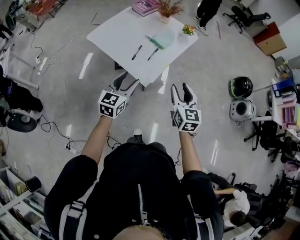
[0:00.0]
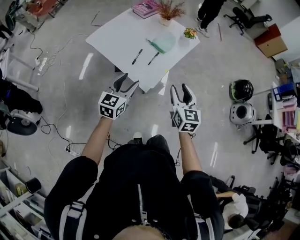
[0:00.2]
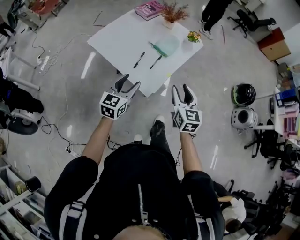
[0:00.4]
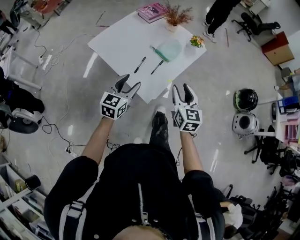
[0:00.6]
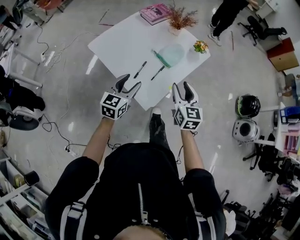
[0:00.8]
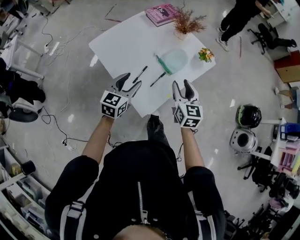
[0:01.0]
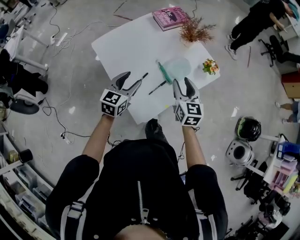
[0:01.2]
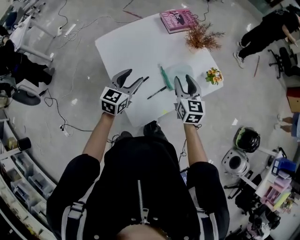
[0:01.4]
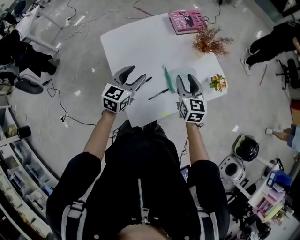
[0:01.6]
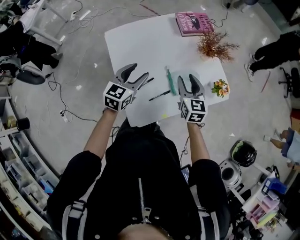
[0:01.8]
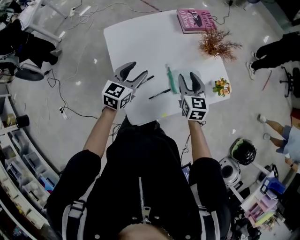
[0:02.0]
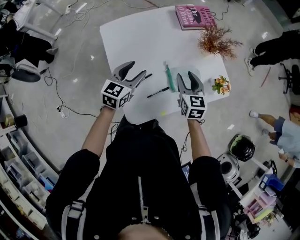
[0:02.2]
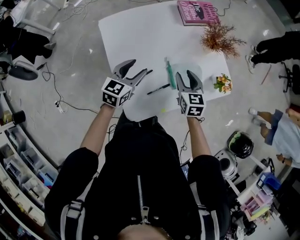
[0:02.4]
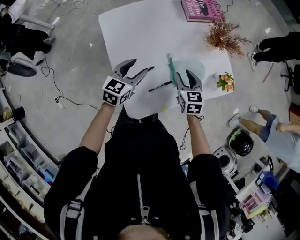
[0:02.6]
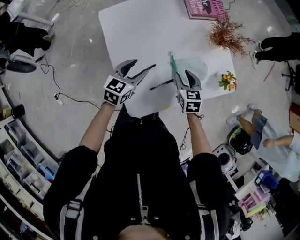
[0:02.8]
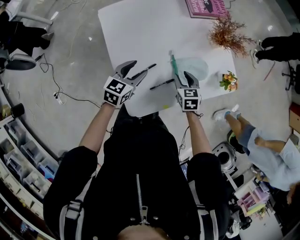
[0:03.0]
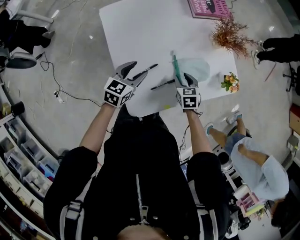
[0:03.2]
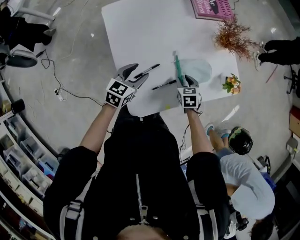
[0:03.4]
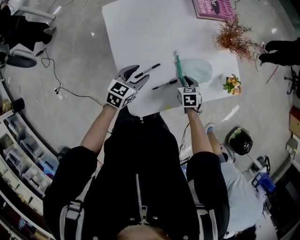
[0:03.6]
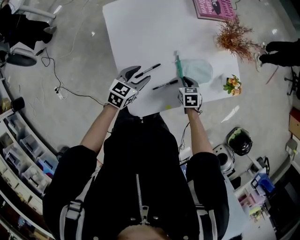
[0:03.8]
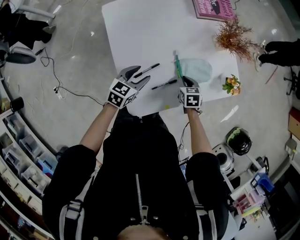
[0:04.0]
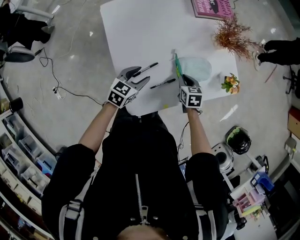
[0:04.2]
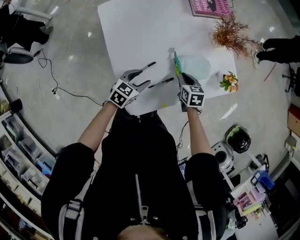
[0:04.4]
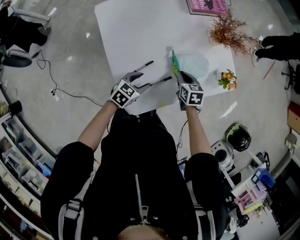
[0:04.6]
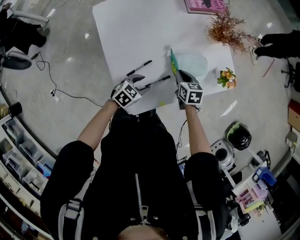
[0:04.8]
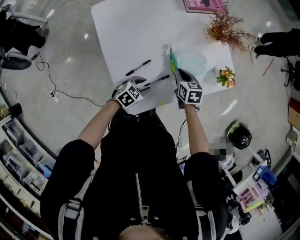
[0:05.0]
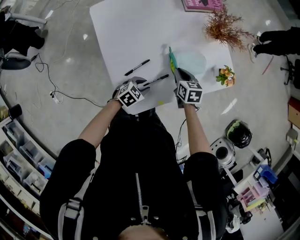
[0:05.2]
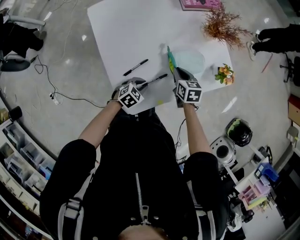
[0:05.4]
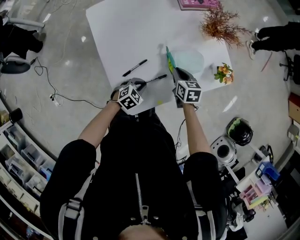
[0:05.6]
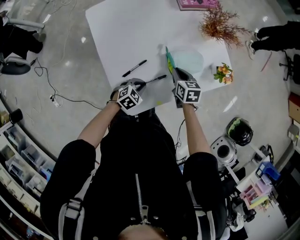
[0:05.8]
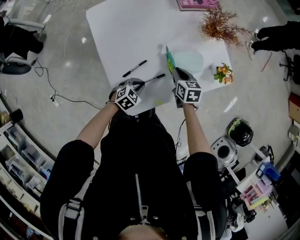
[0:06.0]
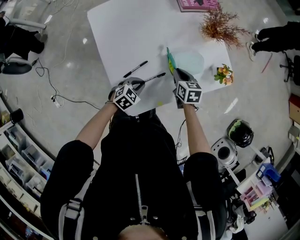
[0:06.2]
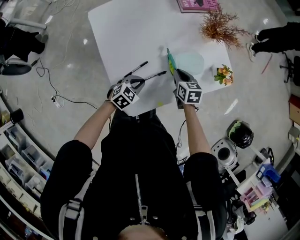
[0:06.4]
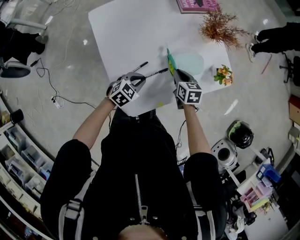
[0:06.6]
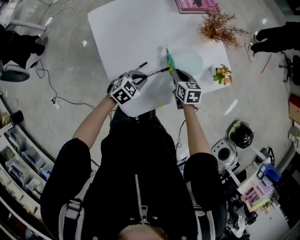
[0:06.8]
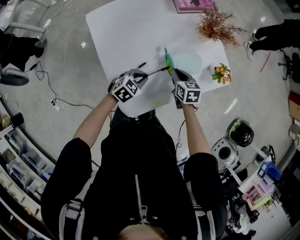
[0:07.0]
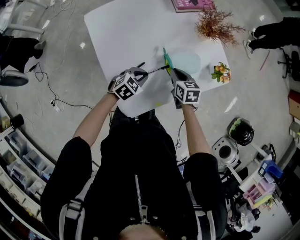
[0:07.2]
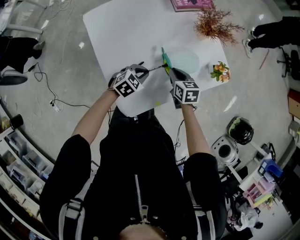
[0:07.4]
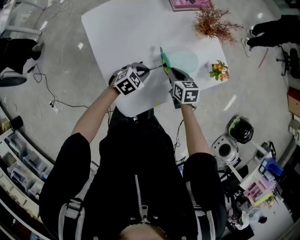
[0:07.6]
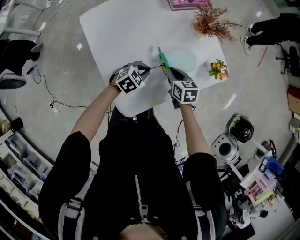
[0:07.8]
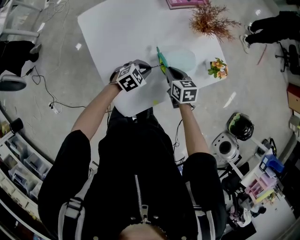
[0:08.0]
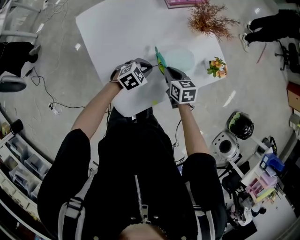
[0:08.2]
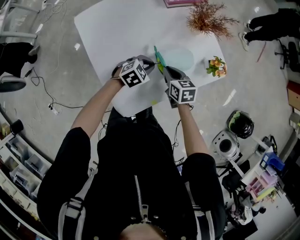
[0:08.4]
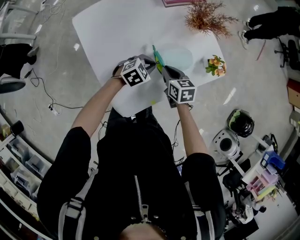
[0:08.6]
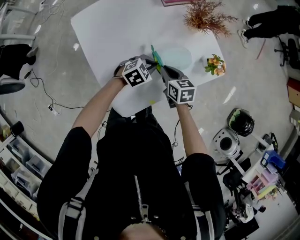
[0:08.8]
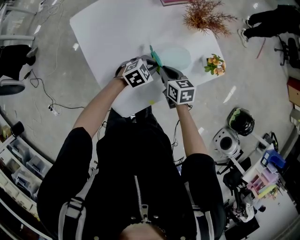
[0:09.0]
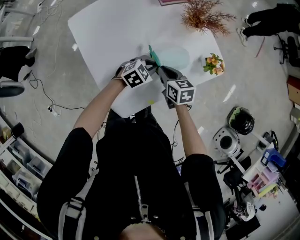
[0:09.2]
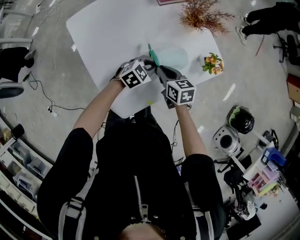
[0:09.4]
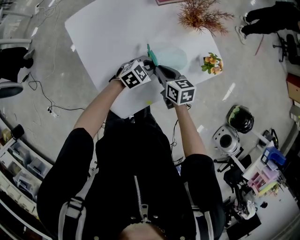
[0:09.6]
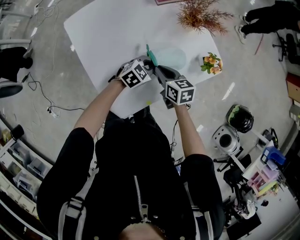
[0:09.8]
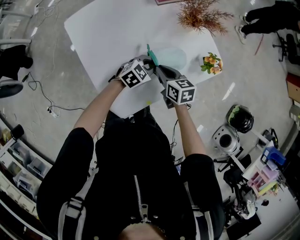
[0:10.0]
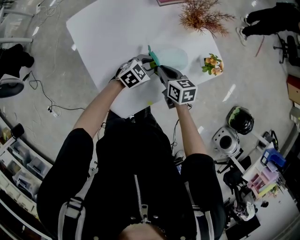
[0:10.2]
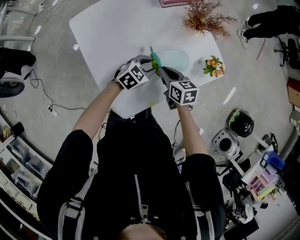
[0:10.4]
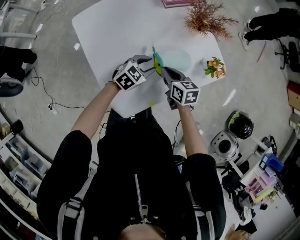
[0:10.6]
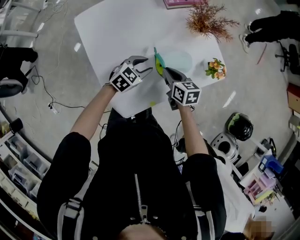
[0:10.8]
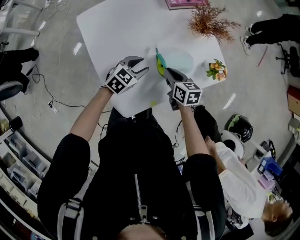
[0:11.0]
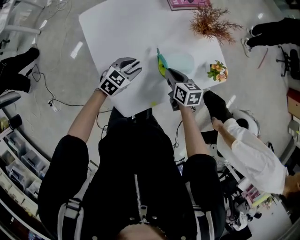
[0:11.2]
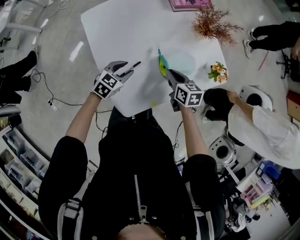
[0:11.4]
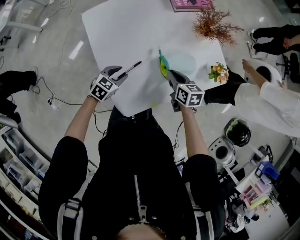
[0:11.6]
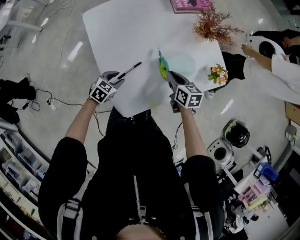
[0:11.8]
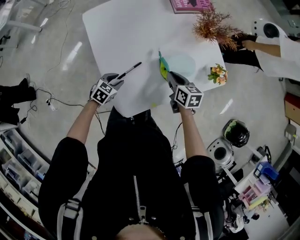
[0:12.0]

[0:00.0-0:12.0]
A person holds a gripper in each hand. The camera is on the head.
0:00.0 to 0:01.6: The left gripper moves approximately 30 cm, and changes its angle by about 20 degrees, while the right gripper ends up some 40 cm from where it was, and changes its angle by roughly 30 degrees.
0:01.6 to 0:03.0: The right gripper moves downward, roughly 15 cm, and changes its angle by approximately 30 degrees; the left gripper heads downward, covering roughly 10 cm.
0:03.0 to 0:04.4: The left gripper goes about 5 cm downward; the right gripper closes up.
0:04.4 to 0:06.0: The left gripper moves downward, roughly 5 cm, changes its angle by approximately 20 degrees, and closes.
0:06.0 to 0:07.6: The left gripper shifts some 10 cm forward and upward.
0:07.6 to 0:09.0: The left gripper heads to the right, covering about 5 cm.
0:09.0 to 0:10.4: The left gripper opens up.
0:10.4 to 0:12.0: The left gripper goes roughly 20 cm to the left and backward, and swivels some 20 degrees.

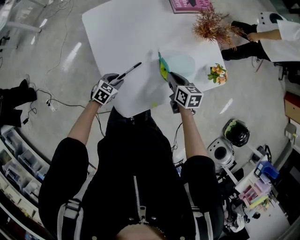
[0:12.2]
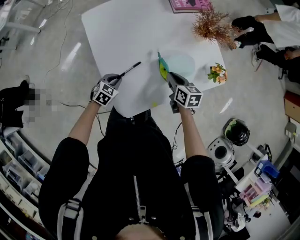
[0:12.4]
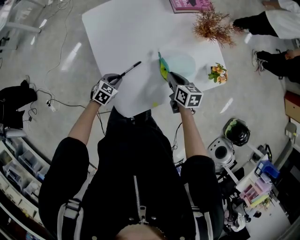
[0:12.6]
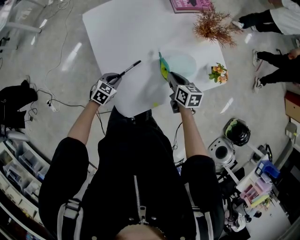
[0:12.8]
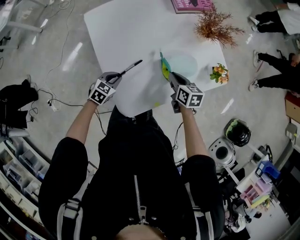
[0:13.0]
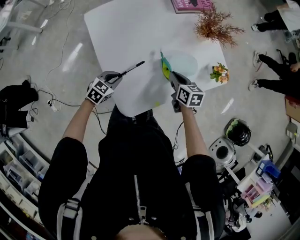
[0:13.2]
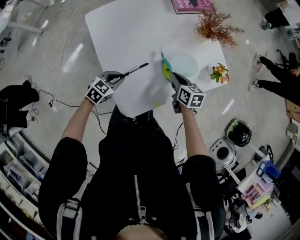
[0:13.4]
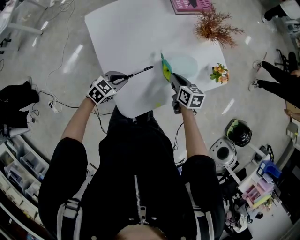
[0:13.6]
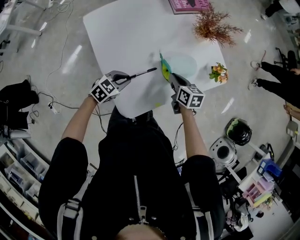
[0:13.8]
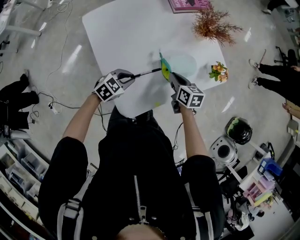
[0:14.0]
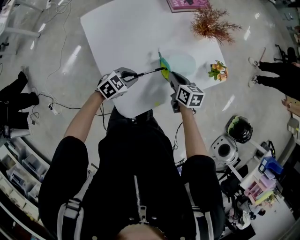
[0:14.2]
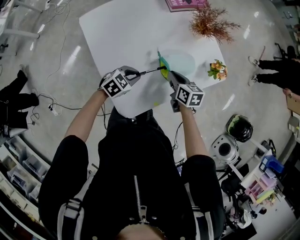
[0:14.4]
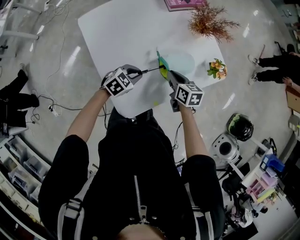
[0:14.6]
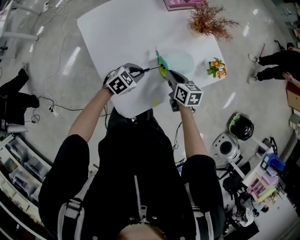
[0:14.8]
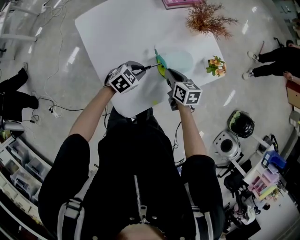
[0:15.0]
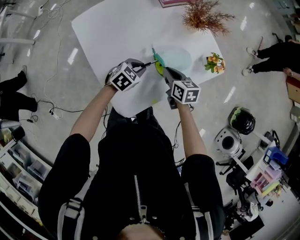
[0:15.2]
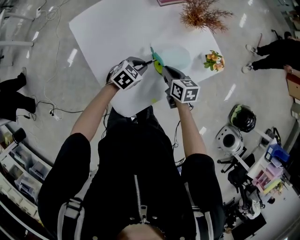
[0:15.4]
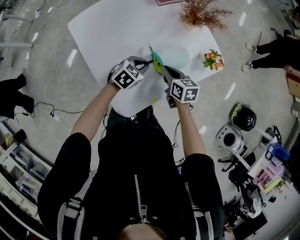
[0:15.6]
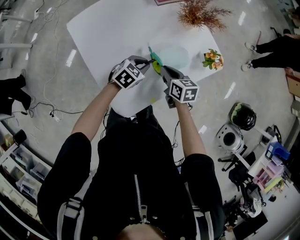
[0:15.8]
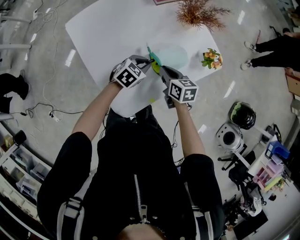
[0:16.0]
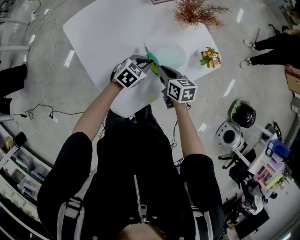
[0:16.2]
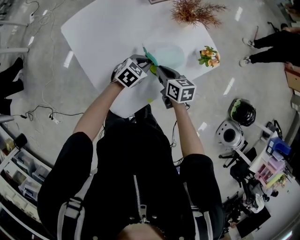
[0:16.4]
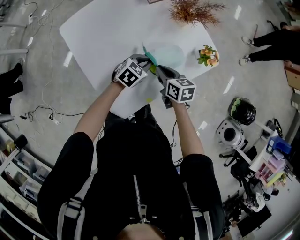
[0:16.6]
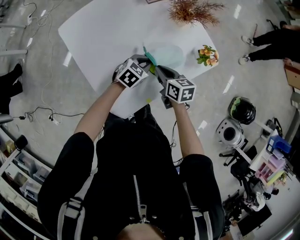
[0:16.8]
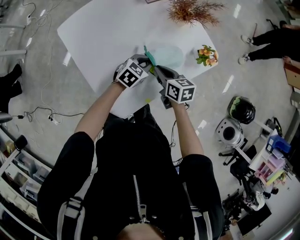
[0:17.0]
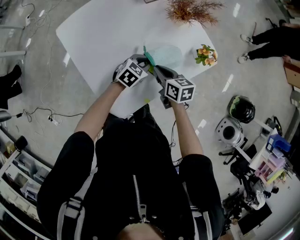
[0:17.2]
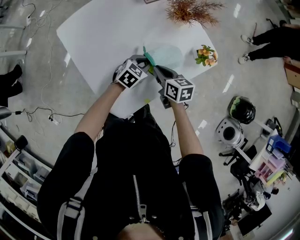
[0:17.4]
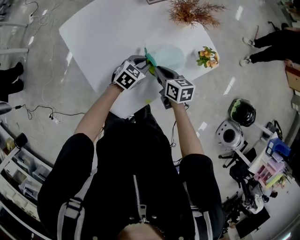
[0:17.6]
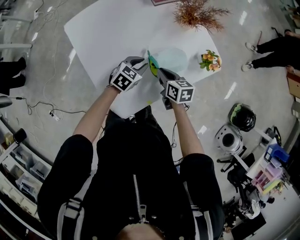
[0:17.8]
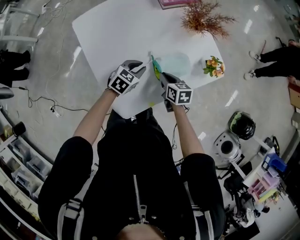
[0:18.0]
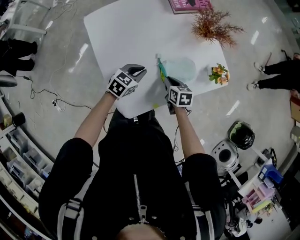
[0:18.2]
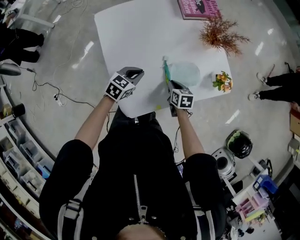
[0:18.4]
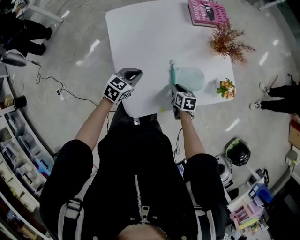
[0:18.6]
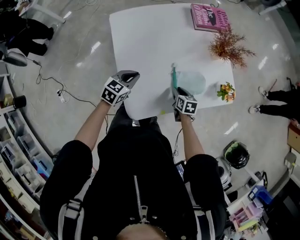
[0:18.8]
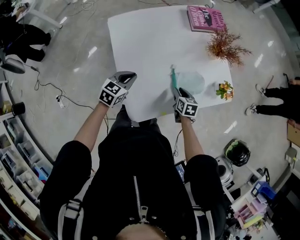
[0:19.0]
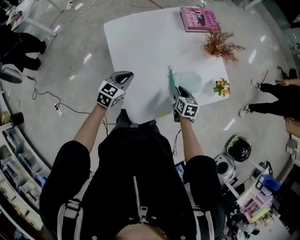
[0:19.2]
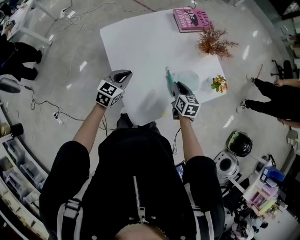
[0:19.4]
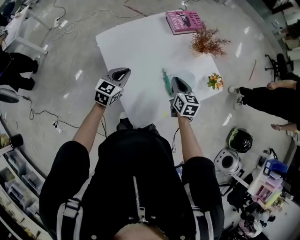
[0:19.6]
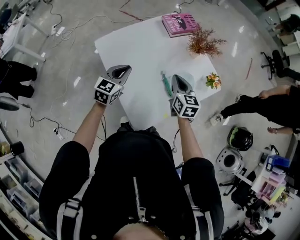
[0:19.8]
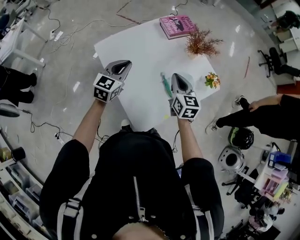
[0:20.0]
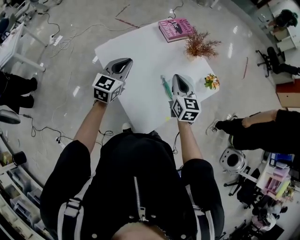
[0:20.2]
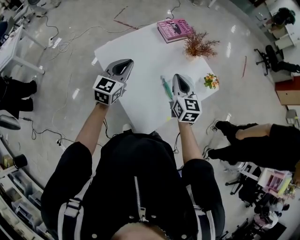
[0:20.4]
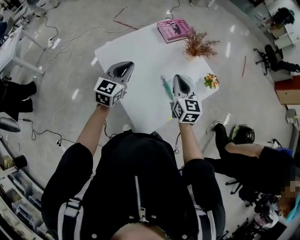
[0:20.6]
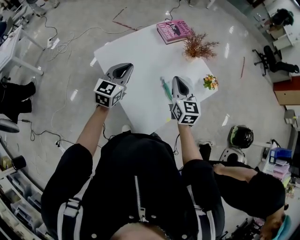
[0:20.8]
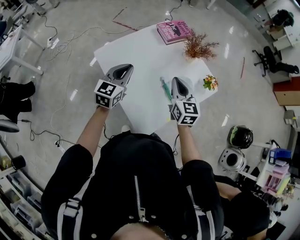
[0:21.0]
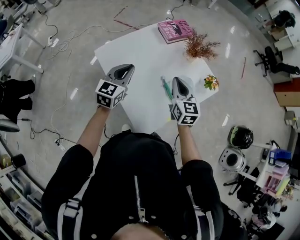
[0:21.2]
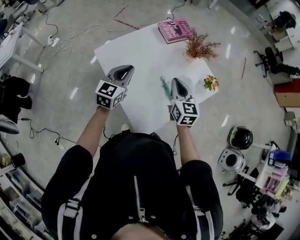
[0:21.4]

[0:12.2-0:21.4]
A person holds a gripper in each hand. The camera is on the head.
0:12.2 to 0:13.8: The left gripper travels upward by about 10 cm.
0:13.8 to 0:15.2: The left gripper goes roughly 10 cm to the right and forward.
0:15.2 to 0:16.8: The left gripper shifts approximately 5 cm to the right.
0:16.8 to 0:18.4: The left gripper shifts approximately 15 cm to the left, and swivels approximately 20 degrees, while the right gripper travels downward by roughly 10 cm.
0:18.4 to 0:19.8: The left gripper travels upward and to the left by some 20 cm, and rotates approximately 20 degrees, while the right gripper heads upward, covering roughly 20 cm, and swivels some 40 degrees.
0:19.8 to 0:21.4: The left gripper goes approximately 5 cm upward; the right gripper changes place by roughly 5 cm.

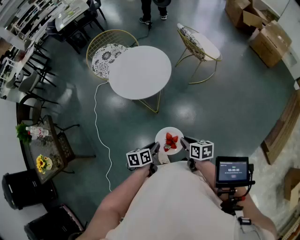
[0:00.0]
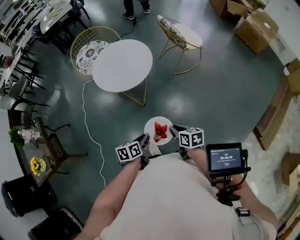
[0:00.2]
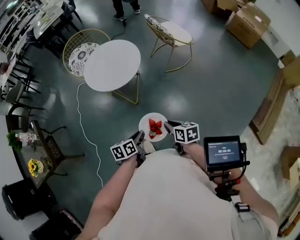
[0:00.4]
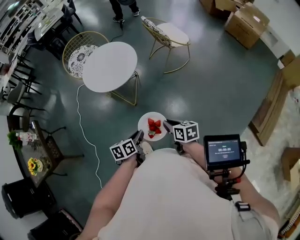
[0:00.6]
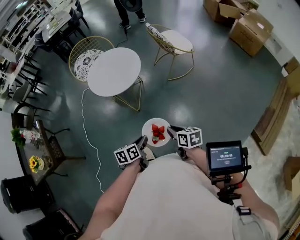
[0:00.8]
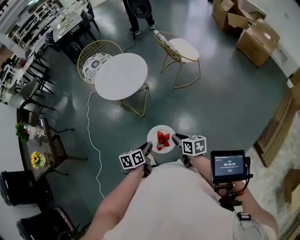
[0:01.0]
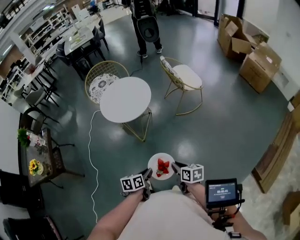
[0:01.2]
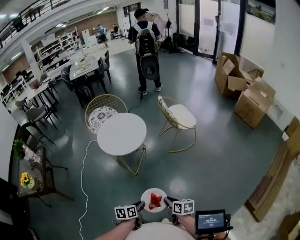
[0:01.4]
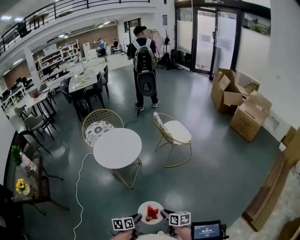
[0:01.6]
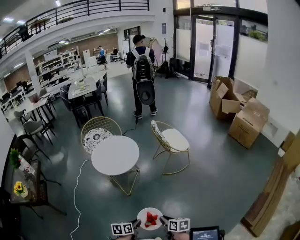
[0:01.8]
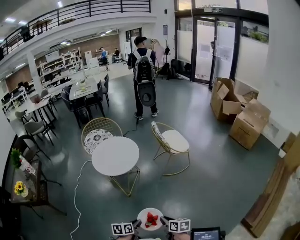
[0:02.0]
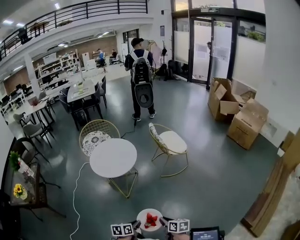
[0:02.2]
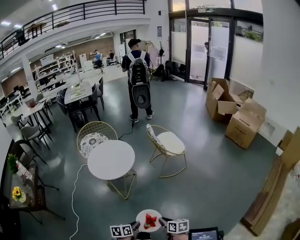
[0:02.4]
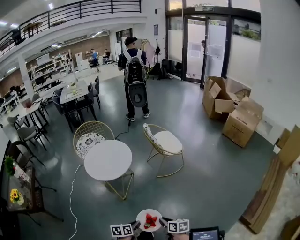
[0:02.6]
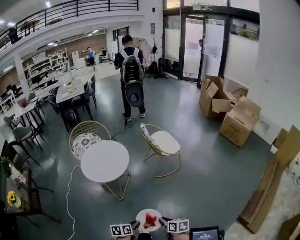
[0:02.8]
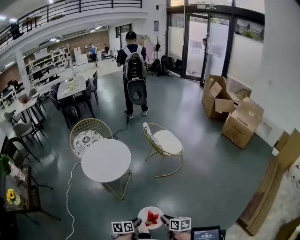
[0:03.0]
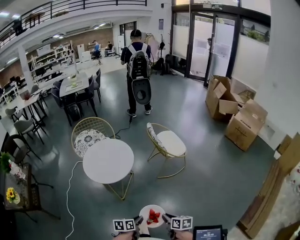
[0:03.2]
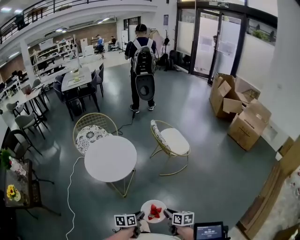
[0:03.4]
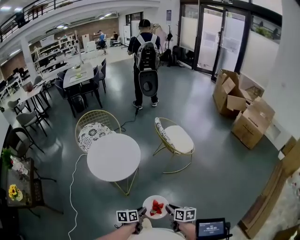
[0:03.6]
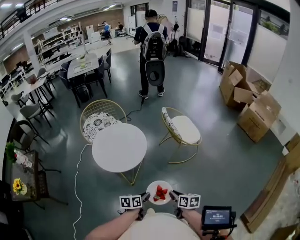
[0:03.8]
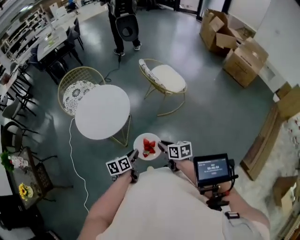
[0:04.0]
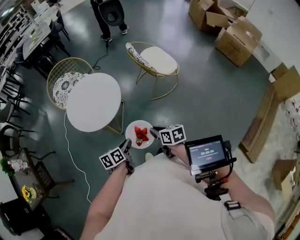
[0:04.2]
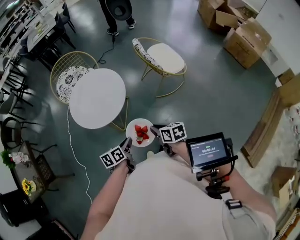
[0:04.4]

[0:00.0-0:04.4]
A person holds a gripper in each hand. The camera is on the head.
0:00.0 to 0:01.4: The two grippers go some 15 cm to the right and backward.
0:01.4 to 0:03.0: The right gripper travels to the right and forward by about 10 cm; the left gripper goes some 10 cm forward and to the right.
0:03.0 to 0:04.4: The two grippers go approximately 20 cm forward.
